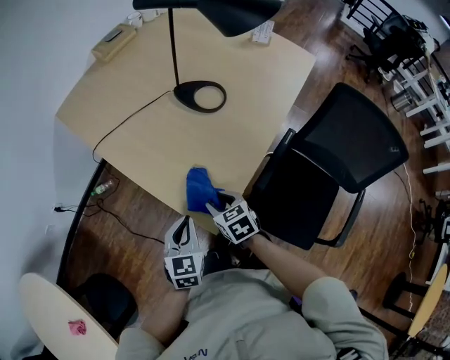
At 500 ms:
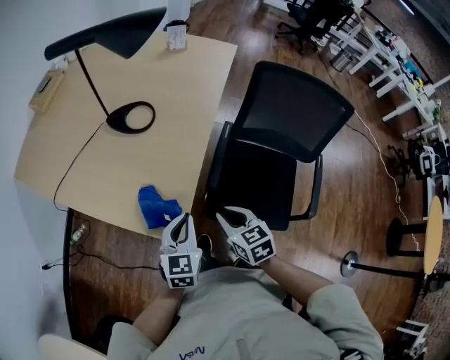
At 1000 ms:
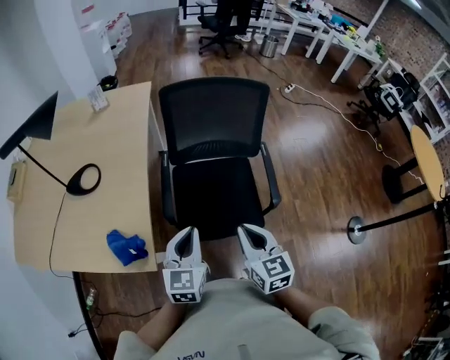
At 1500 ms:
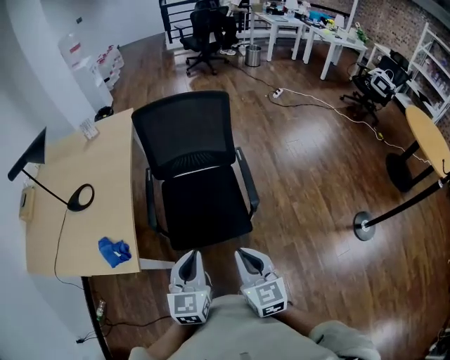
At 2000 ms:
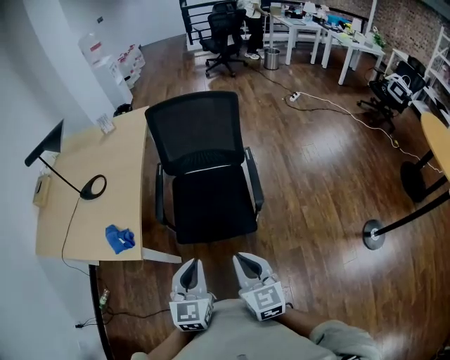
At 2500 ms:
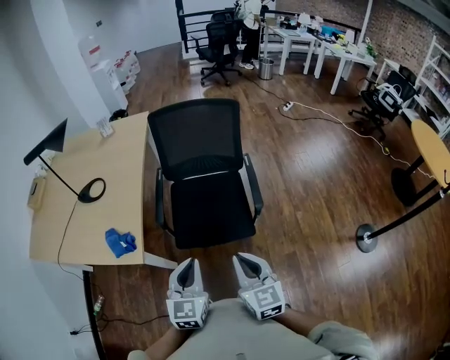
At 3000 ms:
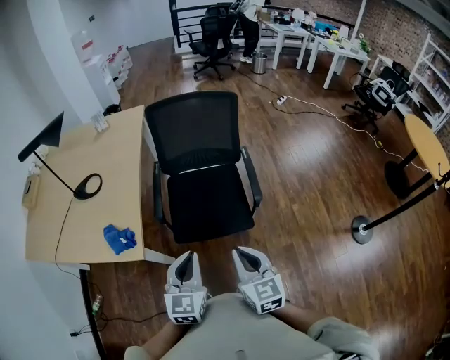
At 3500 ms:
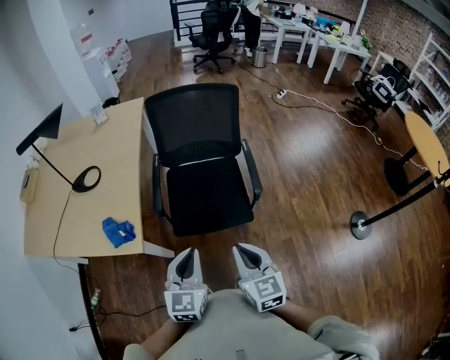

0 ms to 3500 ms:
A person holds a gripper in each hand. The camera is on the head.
0 ms to 2000 ms: The two grippers travel together, some 50 cm. The left gripper changes its angle by roughly 40 degrees; the right gripper tilts its fingers roughly 30 degrees upward, and closes its fingers.
2000 ms to 3500 ms: Both grippers move to the left, approximately 5 cm.

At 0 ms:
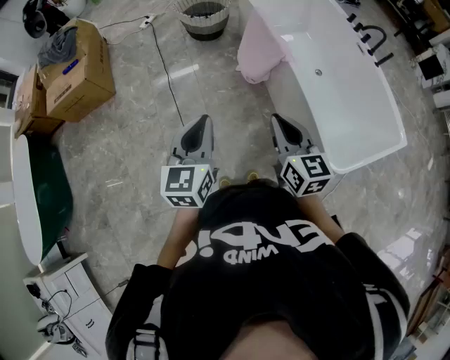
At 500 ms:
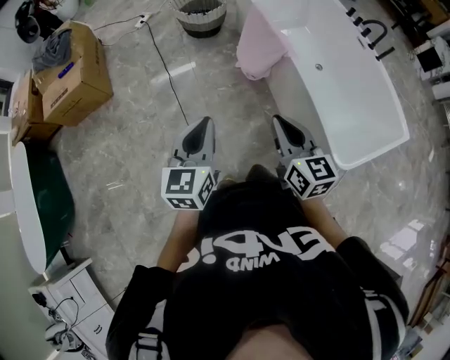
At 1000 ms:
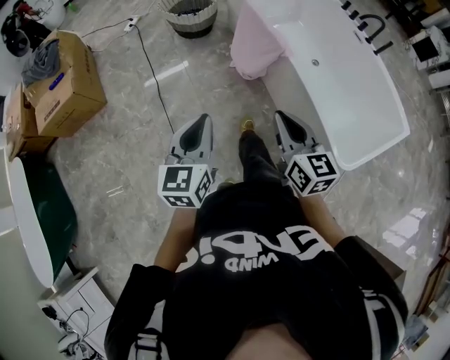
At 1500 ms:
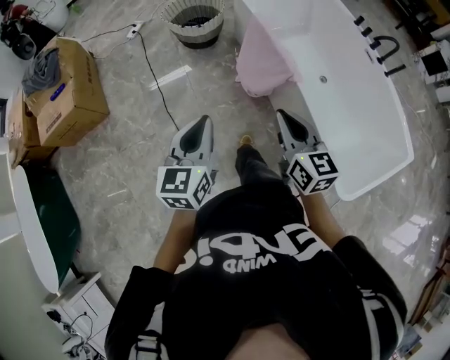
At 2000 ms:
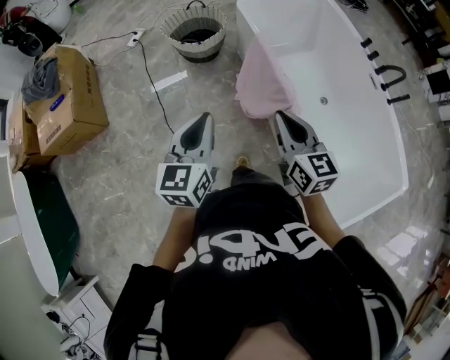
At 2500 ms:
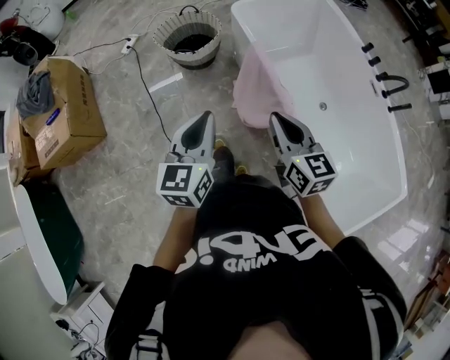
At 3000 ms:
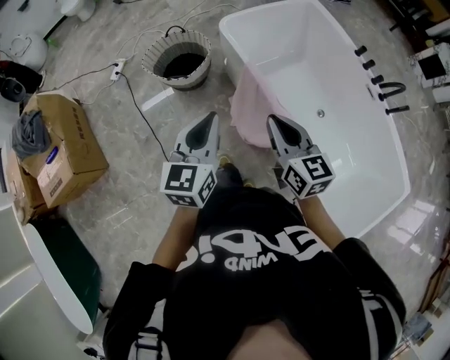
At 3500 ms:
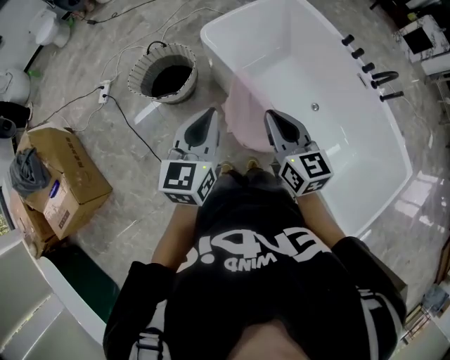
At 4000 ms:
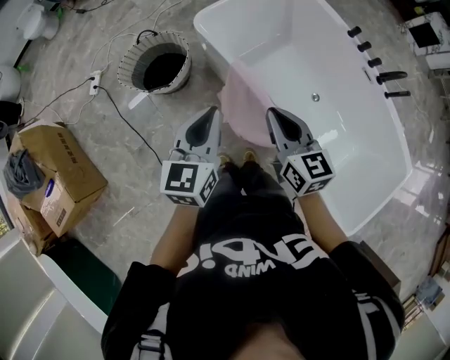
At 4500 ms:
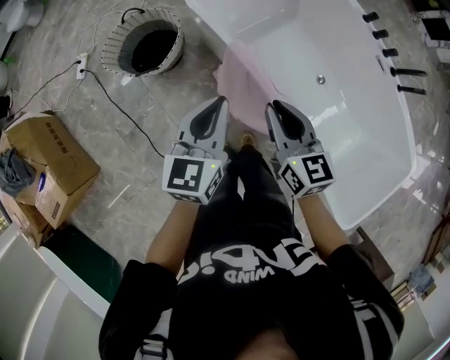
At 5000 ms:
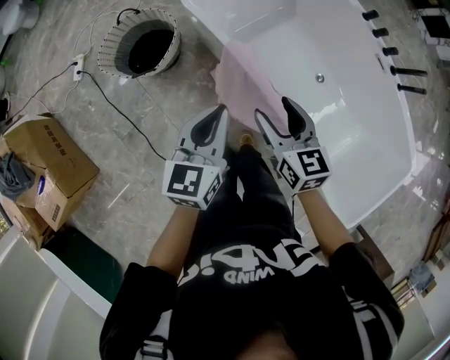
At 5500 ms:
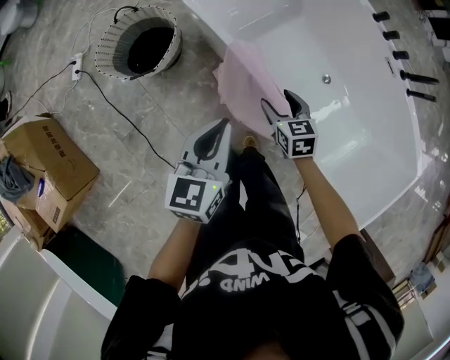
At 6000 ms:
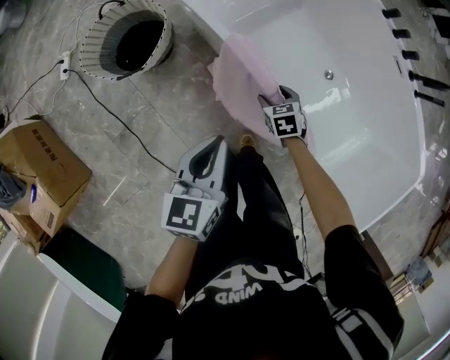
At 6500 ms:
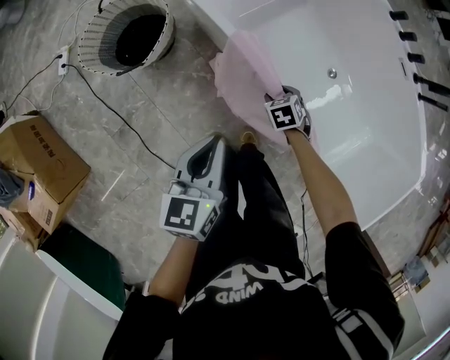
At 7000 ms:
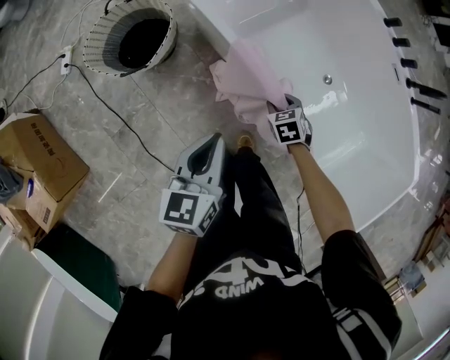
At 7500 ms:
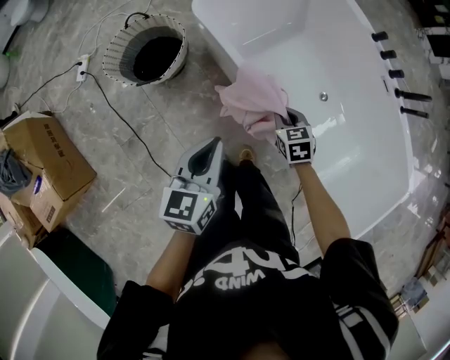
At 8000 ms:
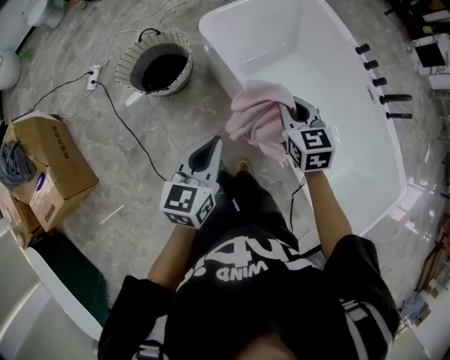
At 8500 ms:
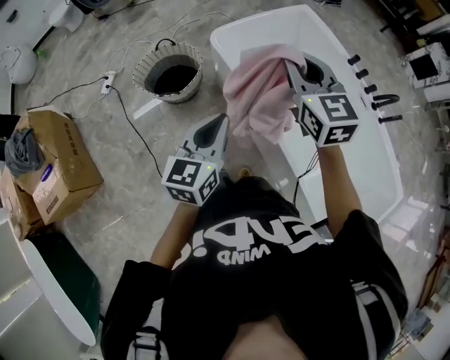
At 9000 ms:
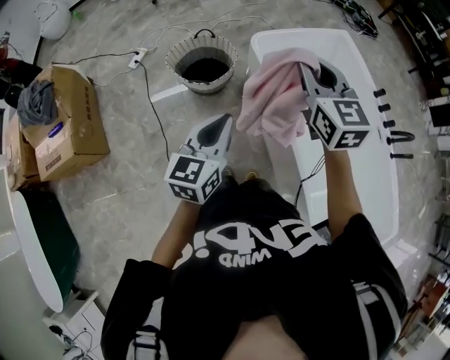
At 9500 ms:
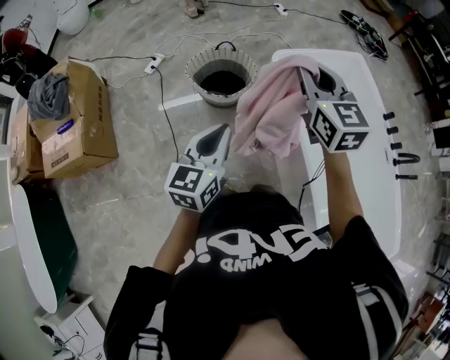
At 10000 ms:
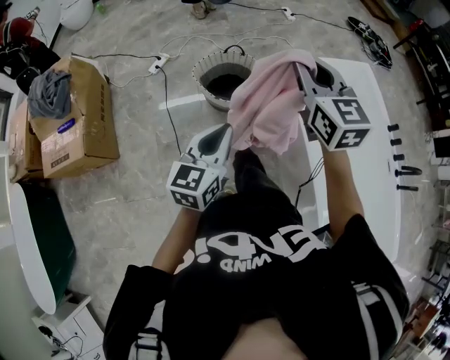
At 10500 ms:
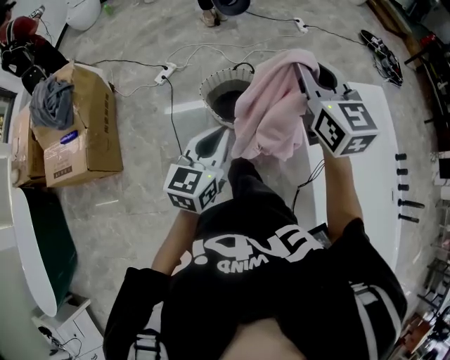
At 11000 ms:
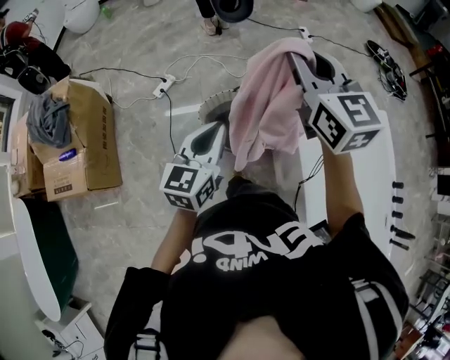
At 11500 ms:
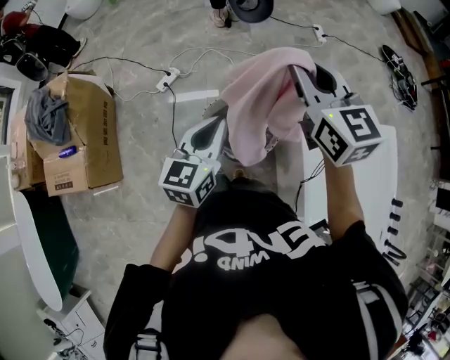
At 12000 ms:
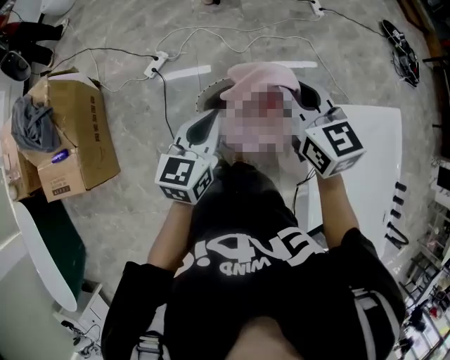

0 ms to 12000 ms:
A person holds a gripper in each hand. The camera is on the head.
0 ms to 2000 ms: Both grippers move forward, about 35 cm.
2000 ms to 4000 ms: The two grippers go roughly 35 cm forward.
4000 ms to 6000 ms: The left gripper moves downward, approximately 20 cm. Meanwhile the right gripper travels downward by about 40 cm, tilts its fingers approximately 40 degrees downward, and opens up.
6000 ms to 8000 ms: The right gripper moves upward, roughly 35 cm, turns by about 30 degrees, and closes, while the left gripper travels upward by roughly 15 cm.
8000 ms to 10000 ms: The left gripper moves to the left and upward, some 25 cm, and swivels approximately 20 degrees, while the right gripper goes some 40 cm to the left and upward, and changes its angle by some 30 degrees.
10000 ms to 12000 ms: The pair of grippers is taken forward, approximately 40 cm. The right gripper rotates about 20 degrees.

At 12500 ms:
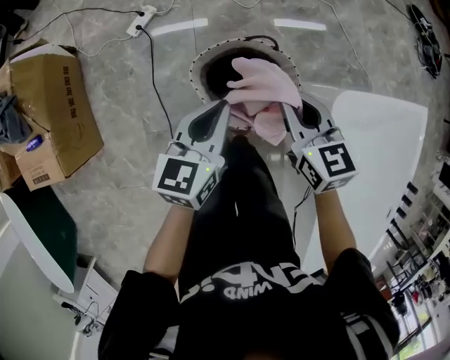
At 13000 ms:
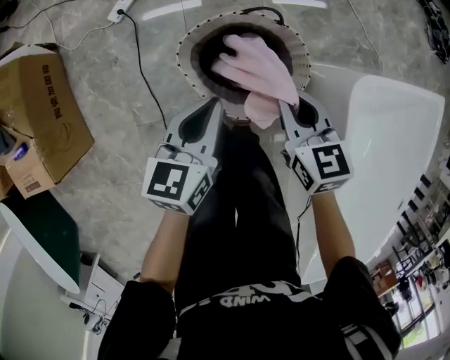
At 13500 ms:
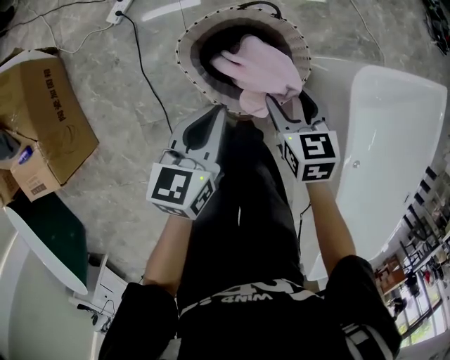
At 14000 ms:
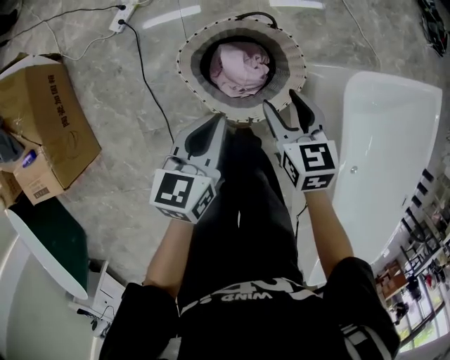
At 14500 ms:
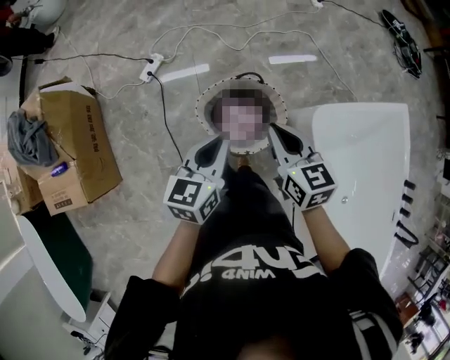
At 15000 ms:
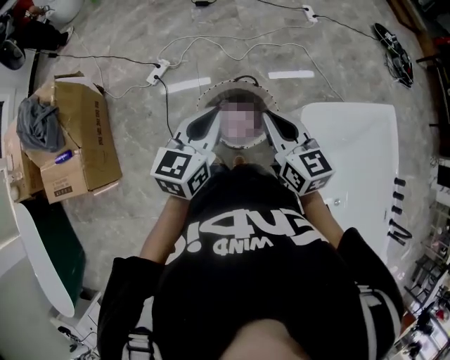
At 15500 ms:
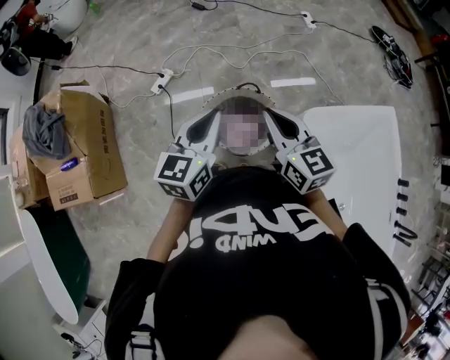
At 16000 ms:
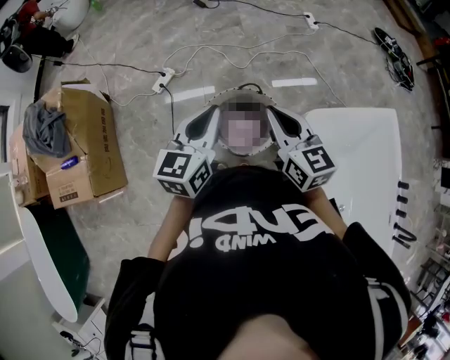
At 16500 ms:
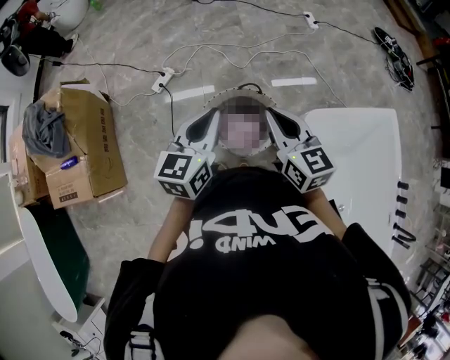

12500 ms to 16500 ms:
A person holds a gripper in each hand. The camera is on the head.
12500 ms to 14500 ms: The right gripper shifts some 10 cm upward and backward, and opens, then closes again. The left gripper heads upward, covering some 10 cm.
14500 ms to 16500 ms: The grippers both shift upward by roughly 10 cm.

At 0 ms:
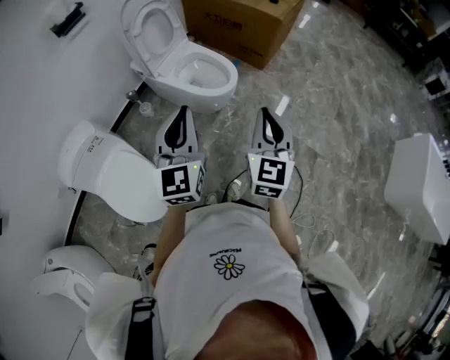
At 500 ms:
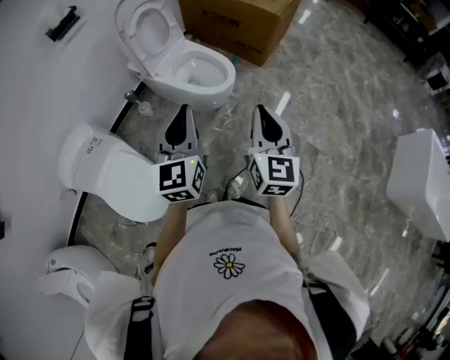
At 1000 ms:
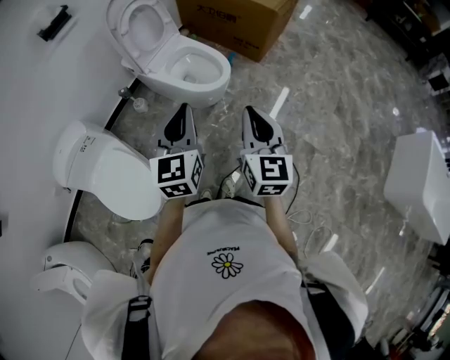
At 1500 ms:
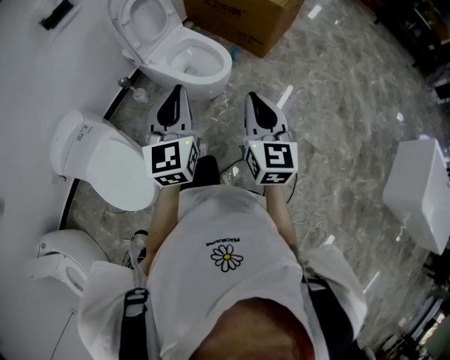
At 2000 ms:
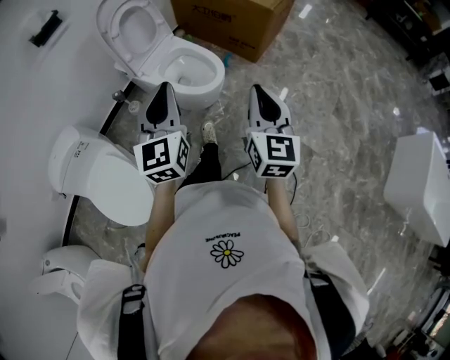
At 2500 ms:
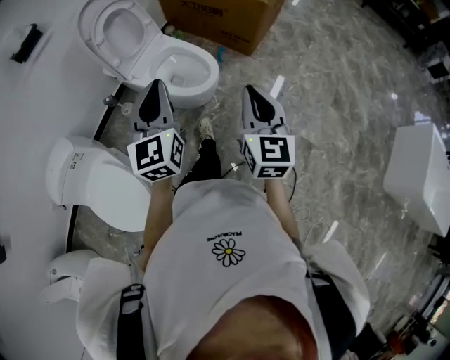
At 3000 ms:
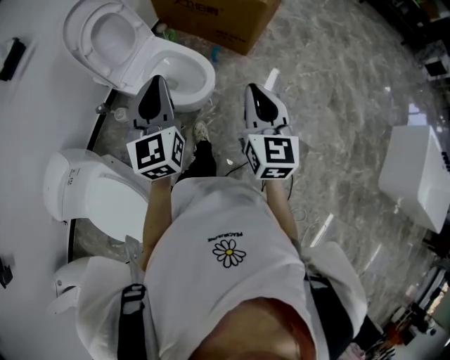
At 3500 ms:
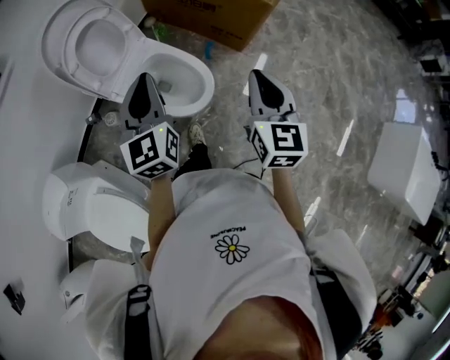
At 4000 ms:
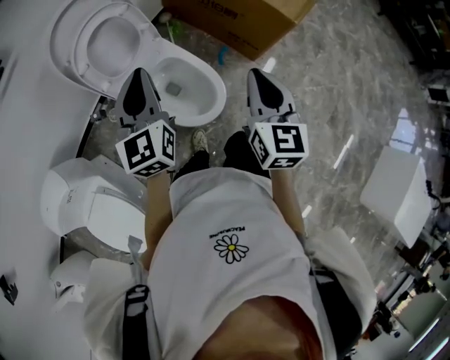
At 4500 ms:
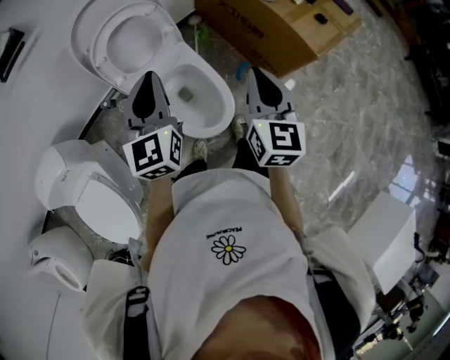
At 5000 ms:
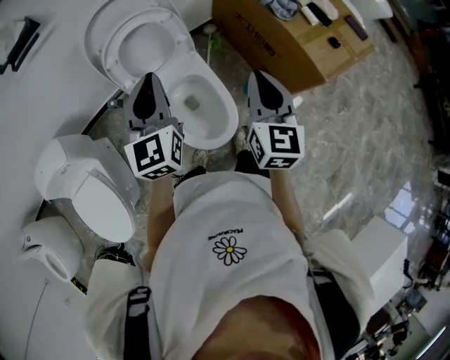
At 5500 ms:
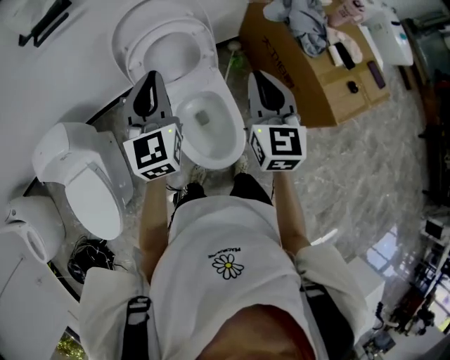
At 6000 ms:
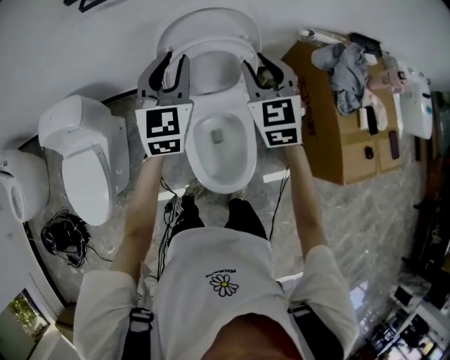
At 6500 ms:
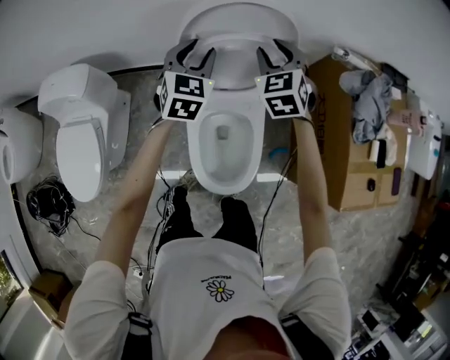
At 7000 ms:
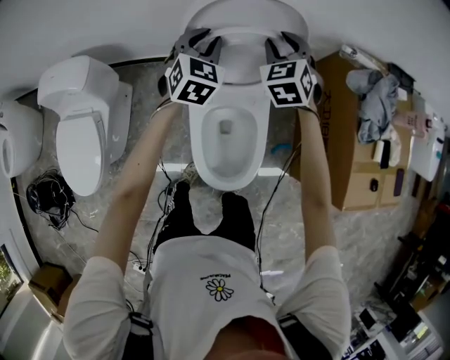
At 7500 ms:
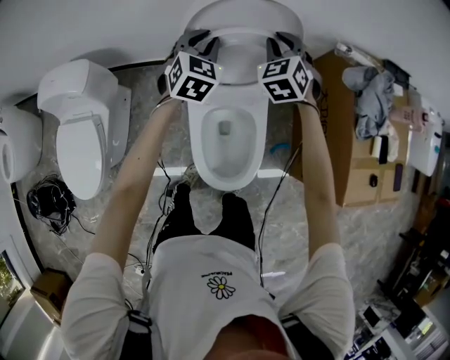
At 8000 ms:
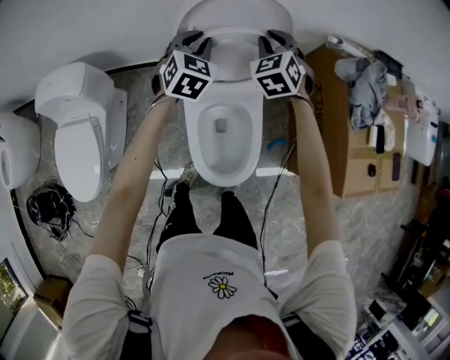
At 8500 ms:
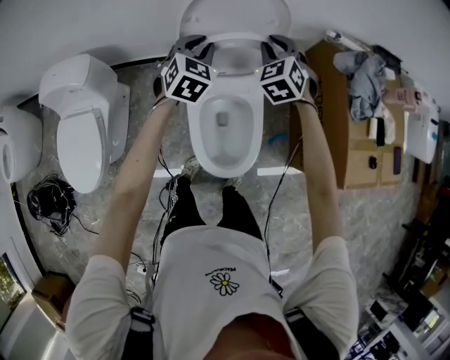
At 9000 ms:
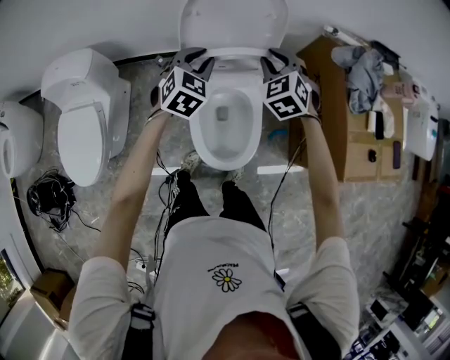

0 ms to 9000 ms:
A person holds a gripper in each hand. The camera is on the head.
0 ms to 2000 ms: The left gripper shifts roughly 10 cm forward. The right gripper travels forward and to the right by some 10 cm.
2000 ms to 4500 ms: The pair of grippers is taken forward, approximately 40 cm. The left gripper changes its angle by some 20 degrees.
4500 ms to 7000 ms: The left gripper shifts by roughly 35 cm, changes its angle by roughly 40 degrees, and opens; the right gripper ends up some 50 cm from where it was, changes its angle by approximately 60 degrees, and opens its fingers.
7000 ms to 9000 ms: Both grippers move backward, roughly 15 cm.
